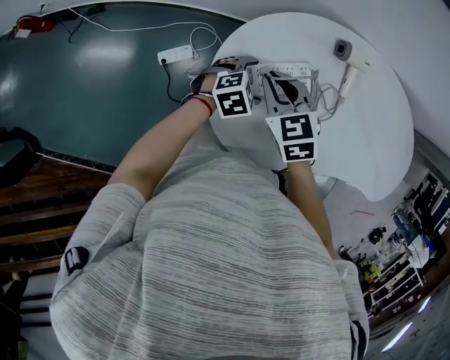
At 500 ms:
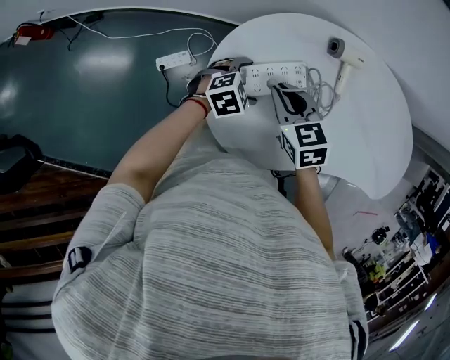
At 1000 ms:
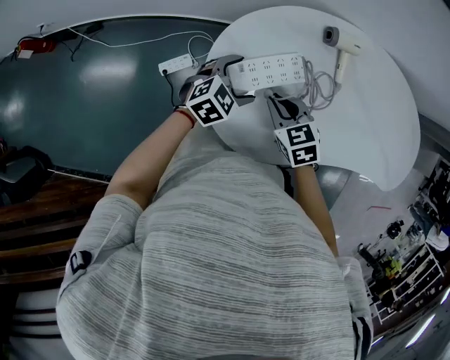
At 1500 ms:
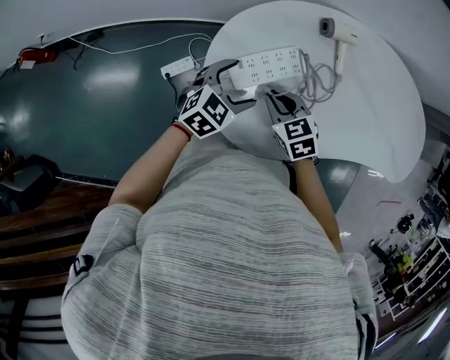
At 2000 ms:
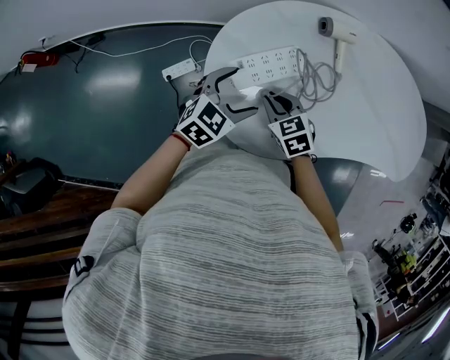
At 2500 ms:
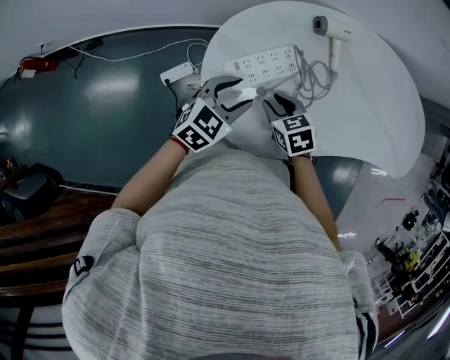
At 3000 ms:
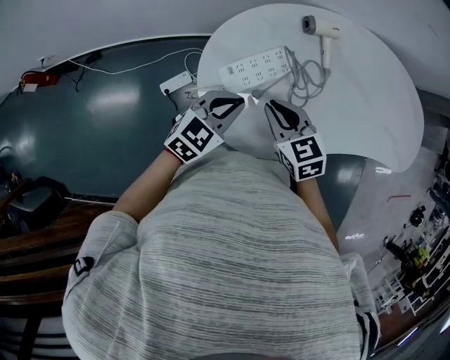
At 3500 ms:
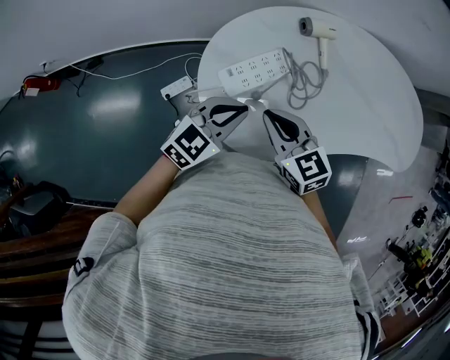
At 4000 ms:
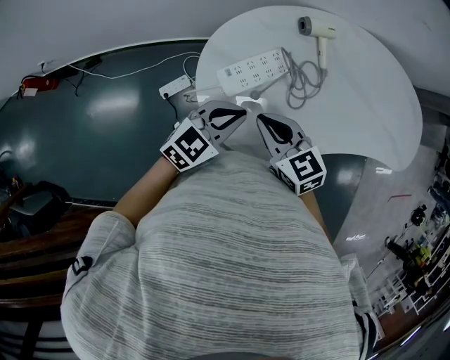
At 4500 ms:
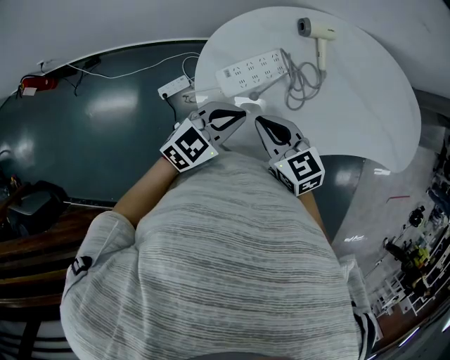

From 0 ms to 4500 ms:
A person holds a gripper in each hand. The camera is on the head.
From 0 ms to 2000 ms: The right gripper moves downward, backward and to the right, some 15 cm; the left gripper shifts some 10 cm upward, and turns by some 20 degrees.
From 2000 ms to 4500 ms: The left gripper moves upward, approximately 5 cm, and closes up; the right gripper shifts roughly 15 cm upward, and rotates roughly 20 degrees.

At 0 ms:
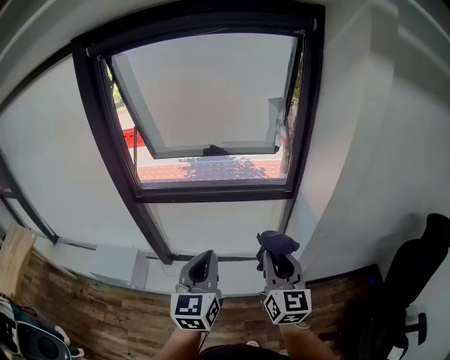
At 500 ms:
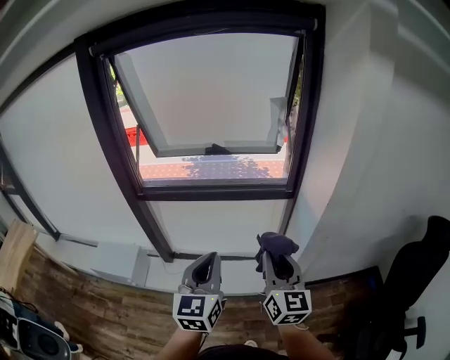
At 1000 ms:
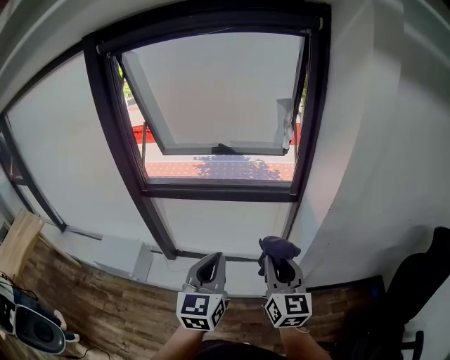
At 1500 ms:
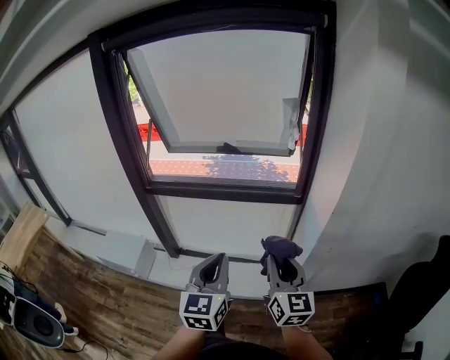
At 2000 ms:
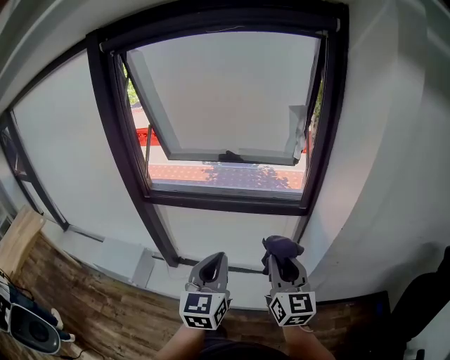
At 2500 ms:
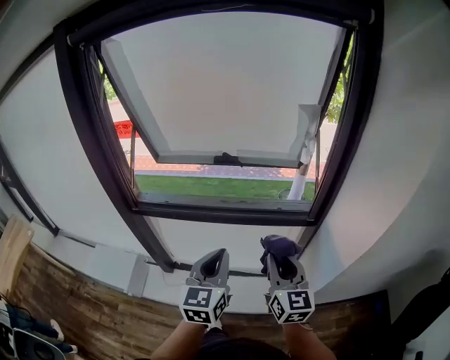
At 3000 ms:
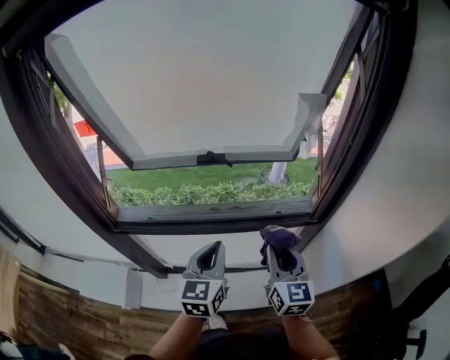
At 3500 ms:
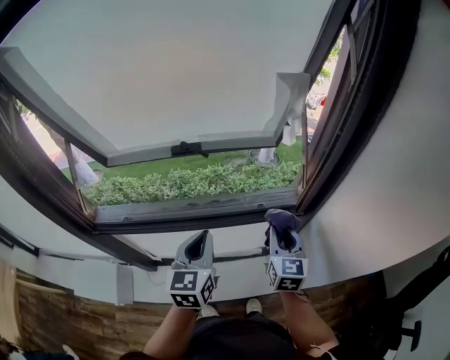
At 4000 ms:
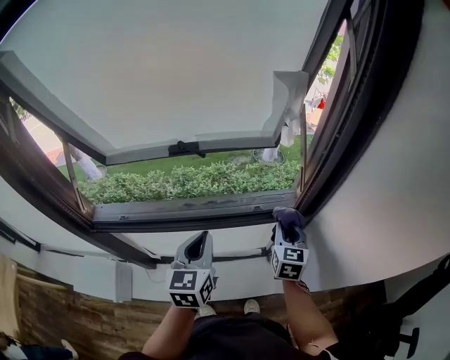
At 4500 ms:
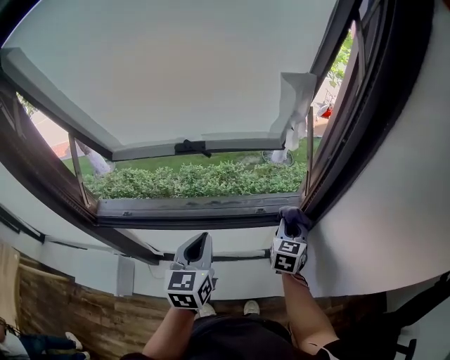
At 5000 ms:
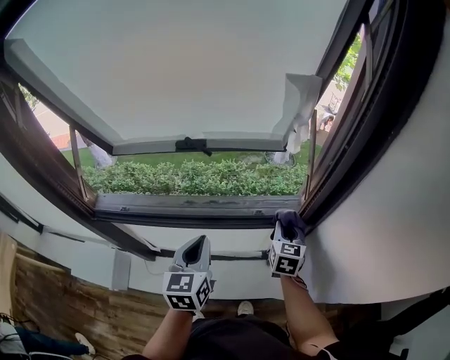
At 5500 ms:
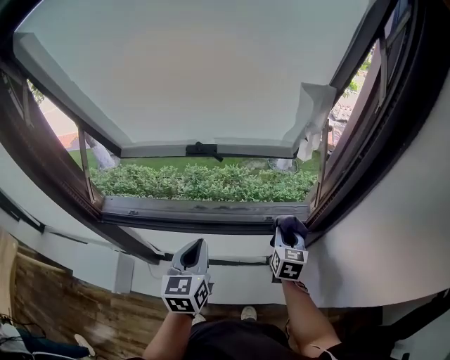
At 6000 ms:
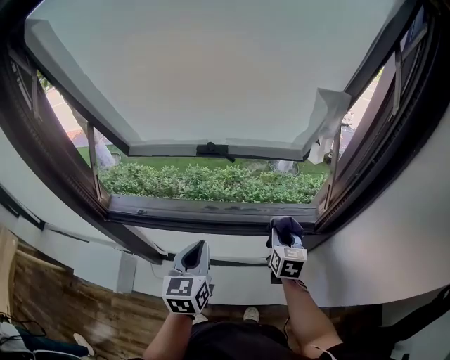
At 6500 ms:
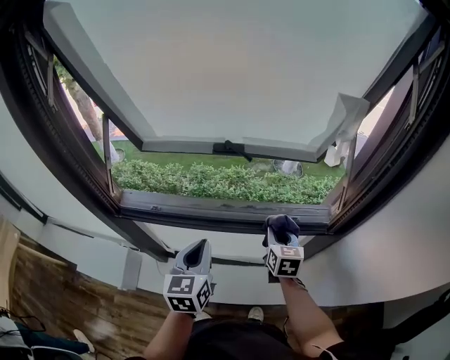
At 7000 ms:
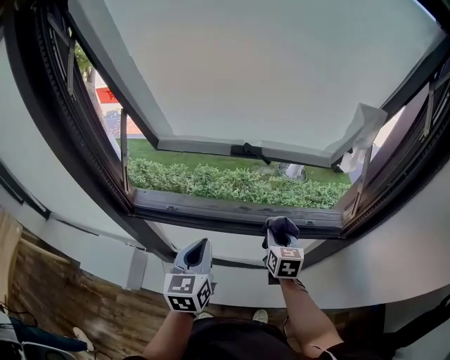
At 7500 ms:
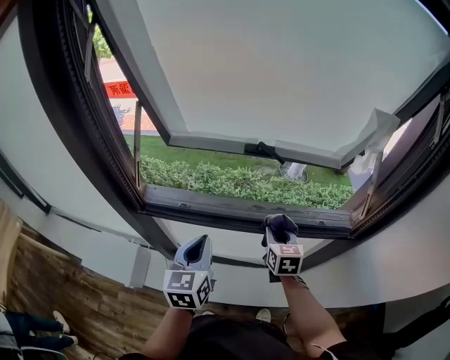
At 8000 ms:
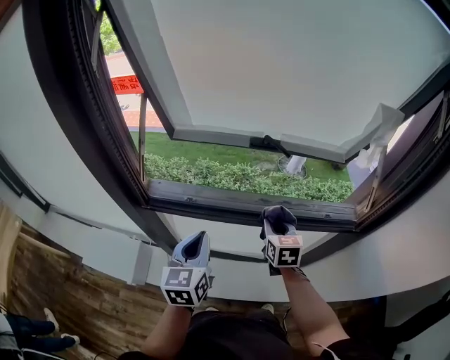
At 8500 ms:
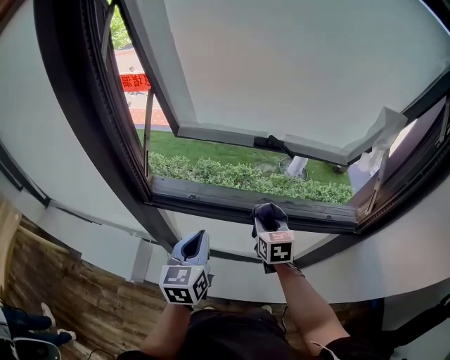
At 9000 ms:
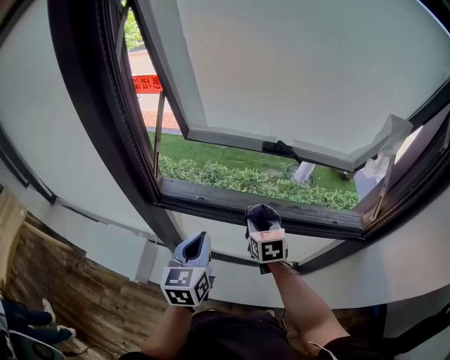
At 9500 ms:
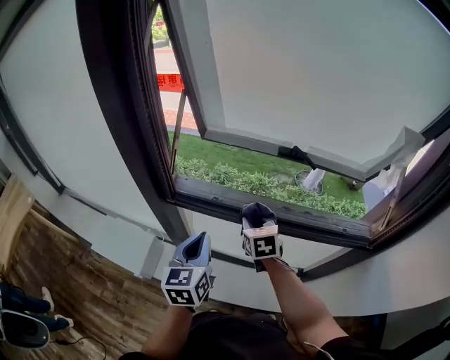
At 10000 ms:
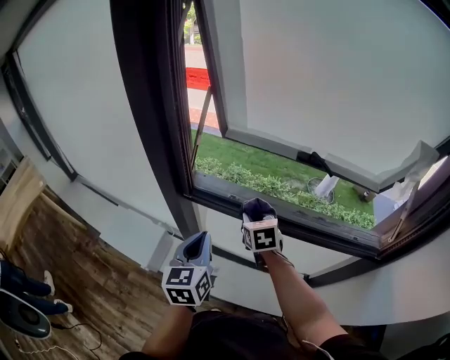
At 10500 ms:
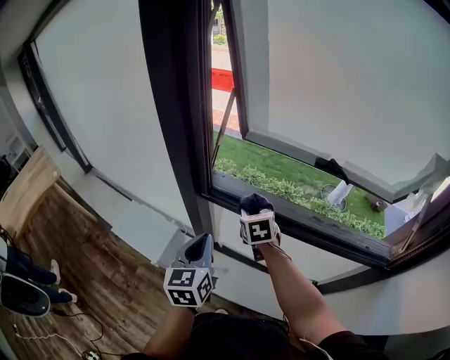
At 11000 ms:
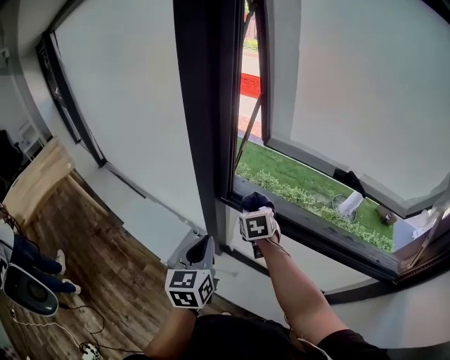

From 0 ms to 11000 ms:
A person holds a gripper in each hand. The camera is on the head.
From 0 ms to 2000 ms: The two grippers go some 5 cm forward.
From 2000 ms to 3500 ms: The two grippers go approximately 30 cm forward. The right gripper rotates approximately 30 degrees.
From 3500 ms to 5500 ms: The right gripper heads forward and downward, covering about 10 cm.
From 5500 ms to 7500 ms: The grippers both shift to the left by some 20 cm.
From 7500 ms to 9000 ms: The left gripper moves to the left, some 5 cm, while the right gripper travels to the left by some 10 cm.
From 9000 ms to 11000 ms: The two grippers go some 20 cm to the left. The left gripper turns by about 20 degrees.

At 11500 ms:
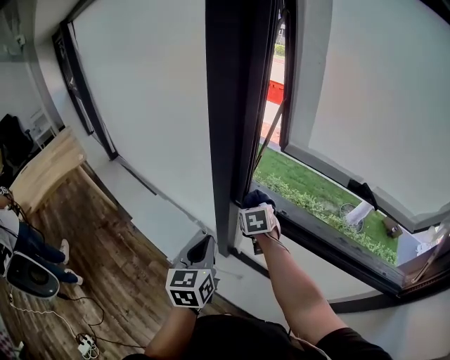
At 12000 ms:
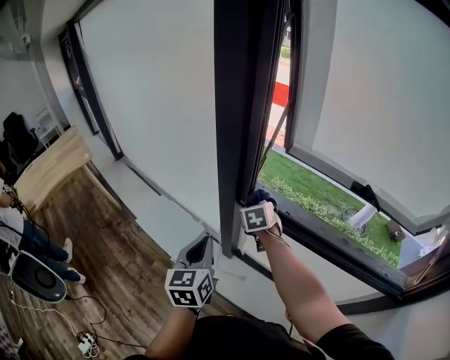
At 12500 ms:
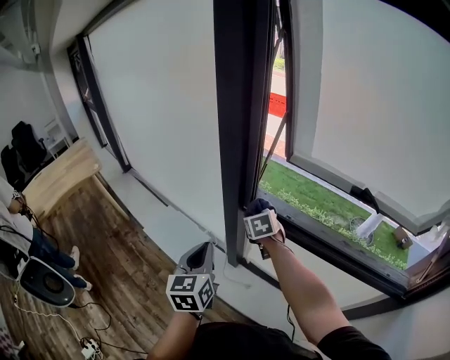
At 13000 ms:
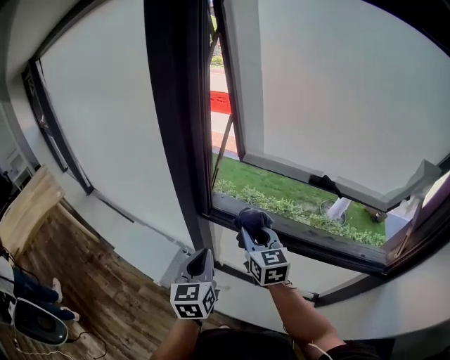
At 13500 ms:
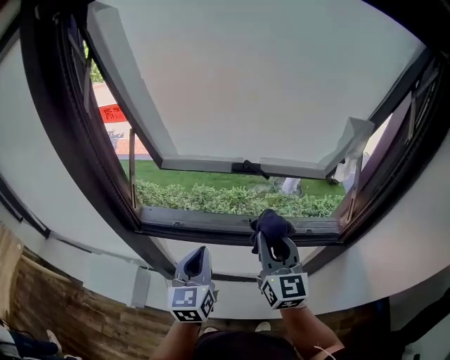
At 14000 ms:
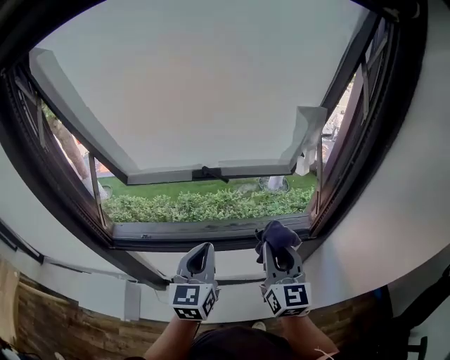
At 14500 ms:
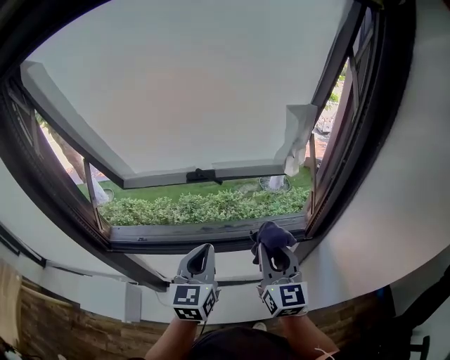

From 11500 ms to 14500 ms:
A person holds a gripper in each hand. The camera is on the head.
From 11500 ms to 13000 ms: The right gripper goes about 20 cm backward, upward and to the right, and changes its angle by roughly 30 degrees; the left gripper is displaced to the right by about 10 cm.
From 13000 ms to 14500 ms: The left gripper ends up approximately 40 cm from where it was, and changes its angle by about 30 degrees, while the right gripper changes place by approximately 40 cm, and rotates some 40 degrees.

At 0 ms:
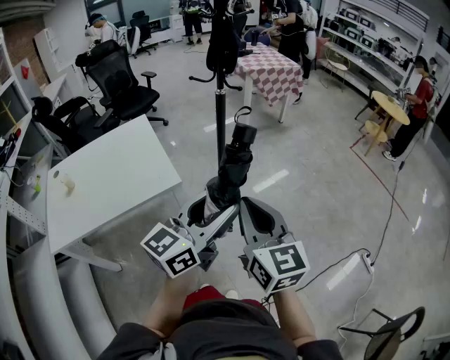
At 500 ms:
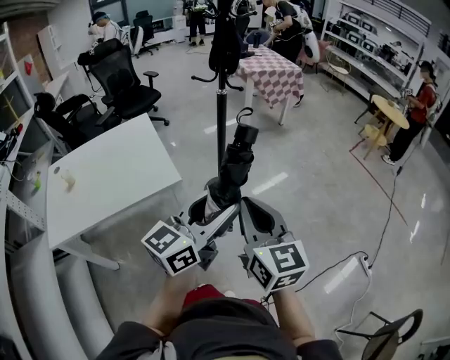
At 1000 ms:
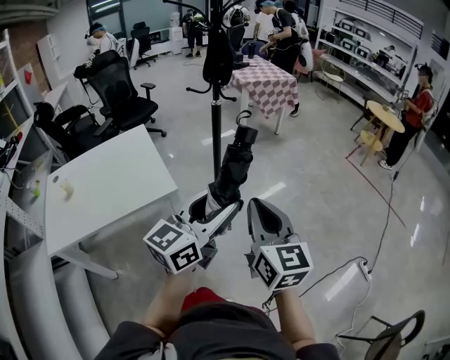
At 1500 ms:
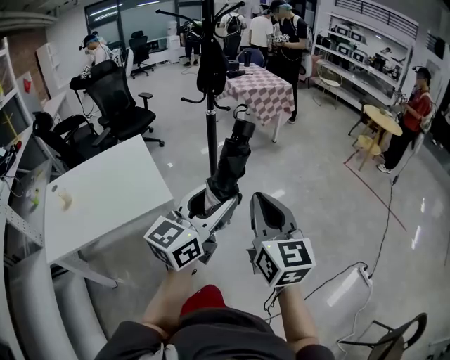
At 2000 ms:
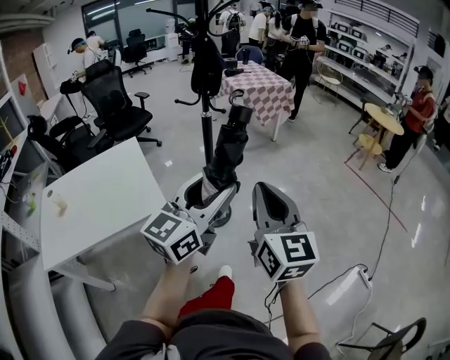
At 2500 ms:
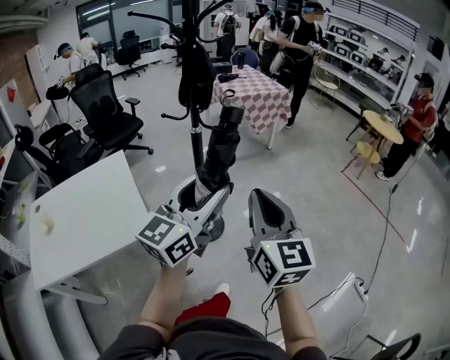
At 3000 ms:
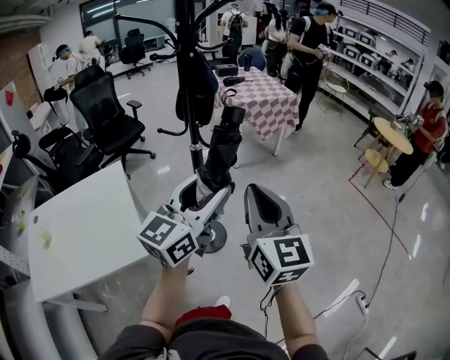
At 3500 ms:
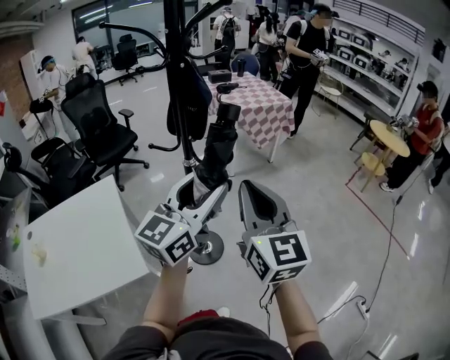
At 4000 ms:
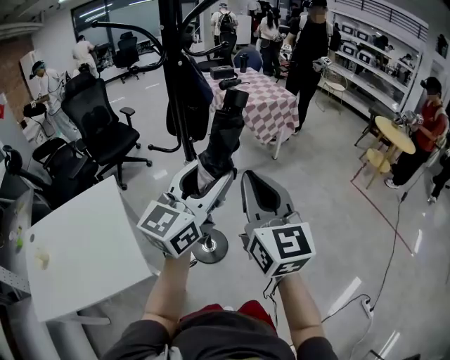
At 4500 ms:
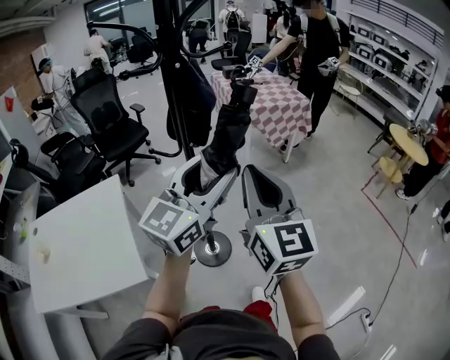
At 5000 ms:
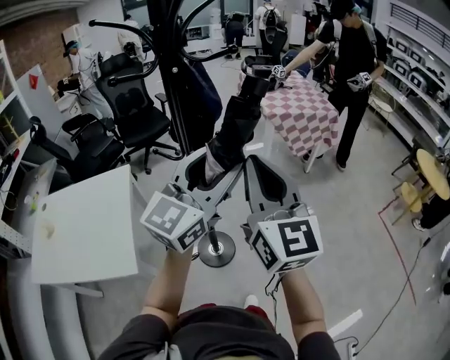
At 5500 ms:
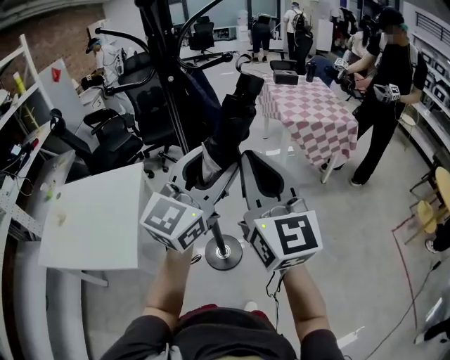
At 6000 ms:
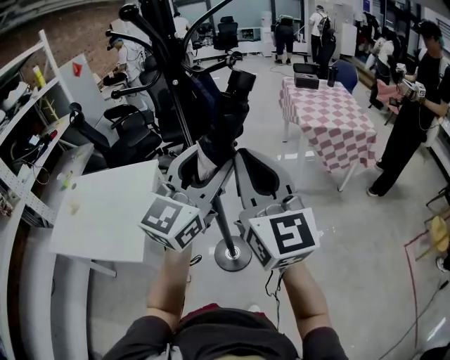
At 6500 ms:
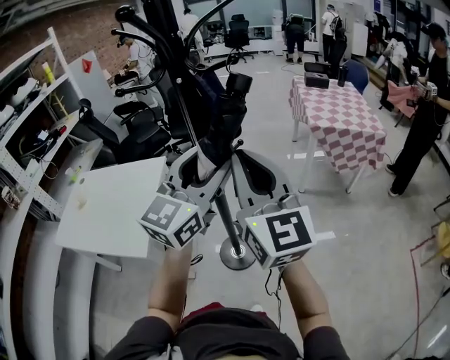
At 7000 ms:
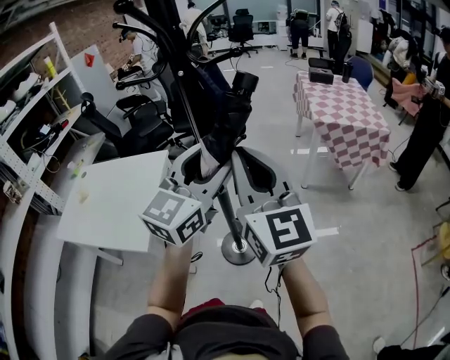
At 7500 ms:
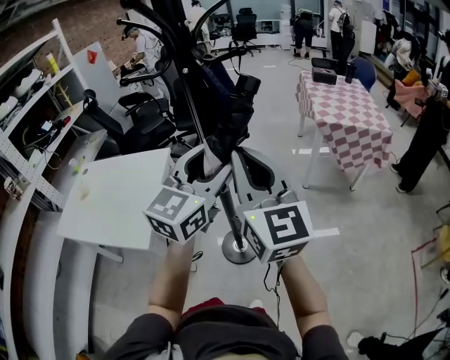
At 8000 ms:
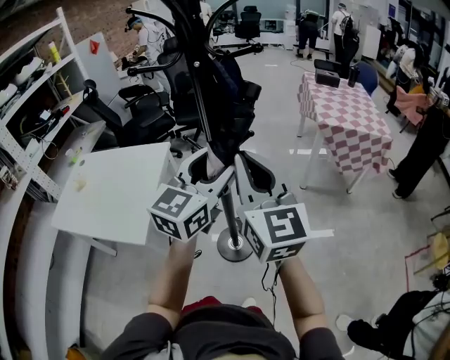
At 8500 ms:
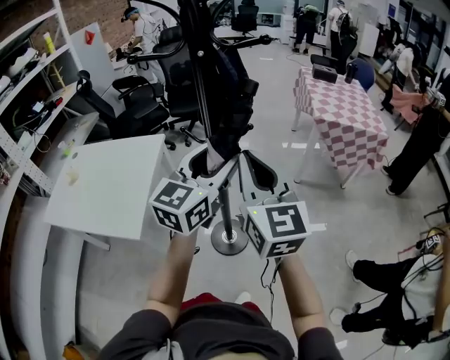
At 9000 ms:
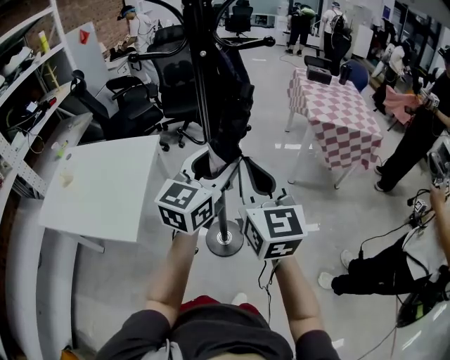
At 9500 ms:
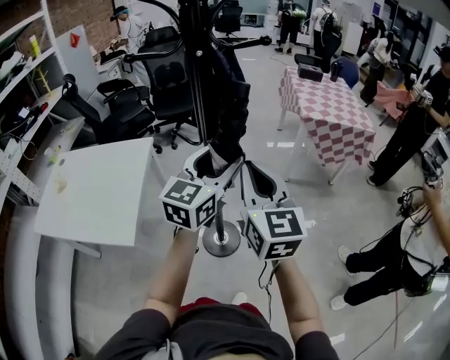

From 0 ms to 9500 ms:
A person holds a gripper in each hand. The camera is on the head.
From 0 ms to 2000 ms: The left gripper moves forward and upward, about 10 cm. The right gripper goes about 15 cm forward, to the right and upward.
From 2000 ms to 4000 ms: The two grippers go some 35 cm forward.
From 4000 ms to 5500 ms: The left gripper goes about 15 cm forward and to the right, and rotates some 30 degrees. The right gripper heads forward, covering approximately 15 cm, and swivels roughly 20 degrees.
From 5500 ms to 7500 ms: The grippers stay close to where they were, moving slightly.
From 7500 ms to 9500 ms: The grippers both shift downward by some 10 cm.
